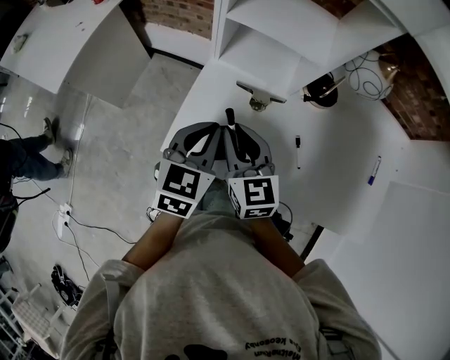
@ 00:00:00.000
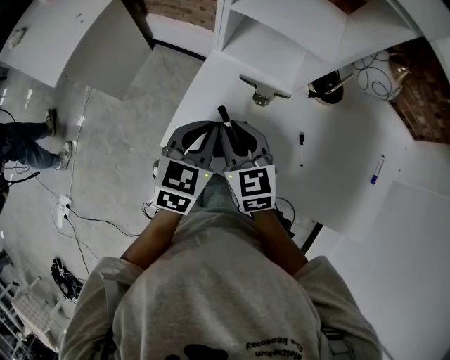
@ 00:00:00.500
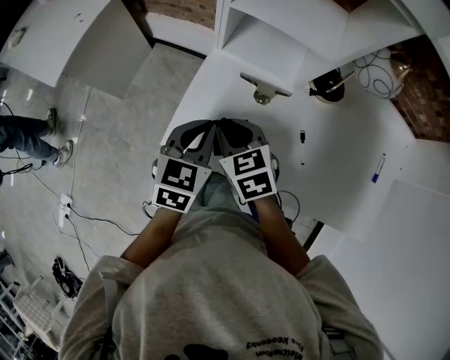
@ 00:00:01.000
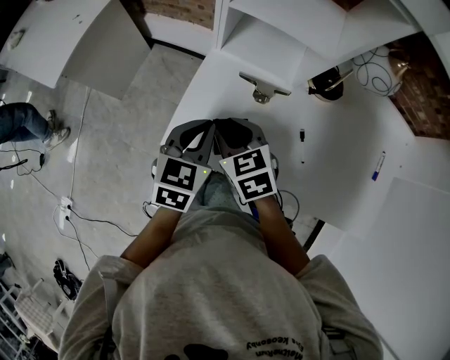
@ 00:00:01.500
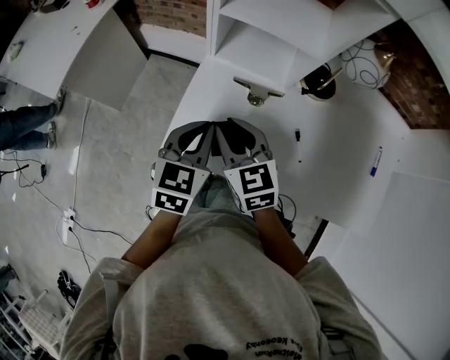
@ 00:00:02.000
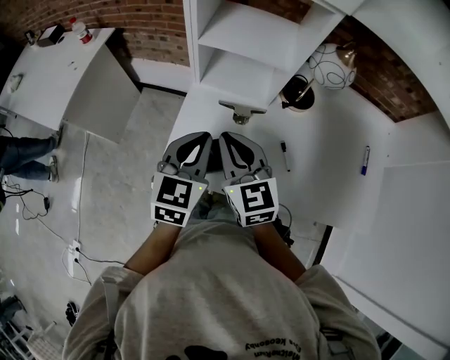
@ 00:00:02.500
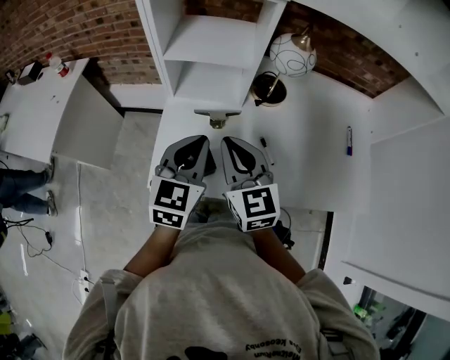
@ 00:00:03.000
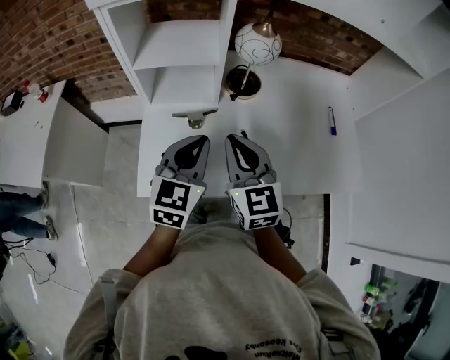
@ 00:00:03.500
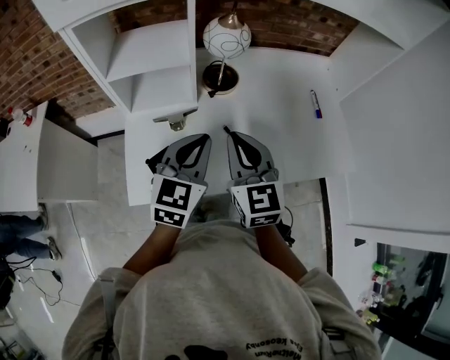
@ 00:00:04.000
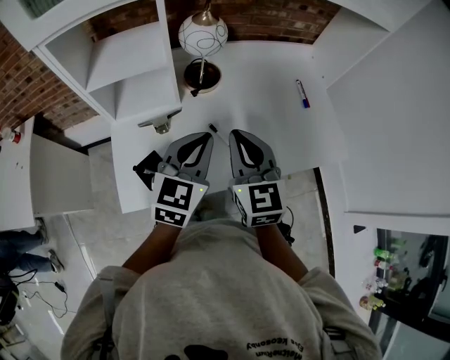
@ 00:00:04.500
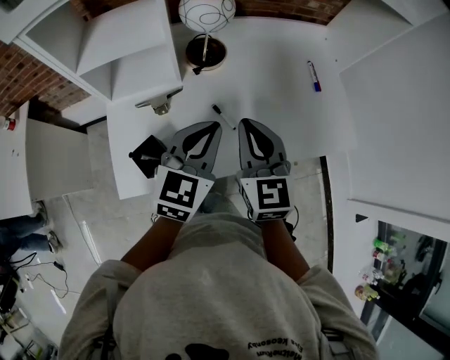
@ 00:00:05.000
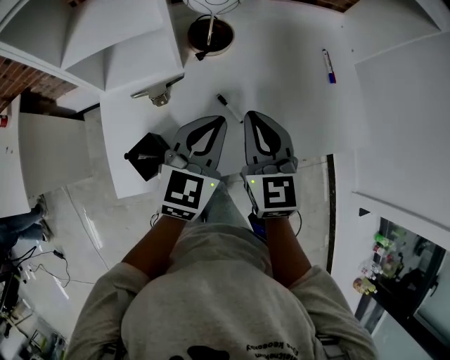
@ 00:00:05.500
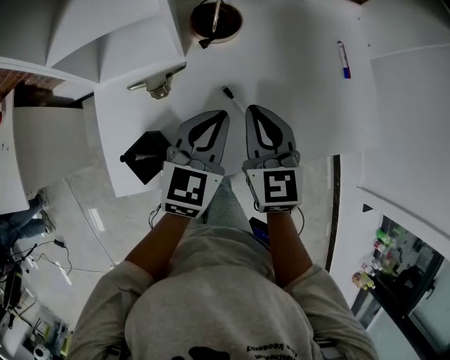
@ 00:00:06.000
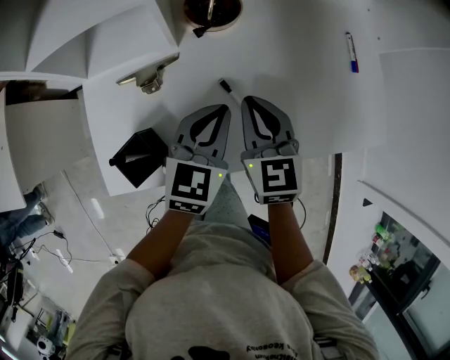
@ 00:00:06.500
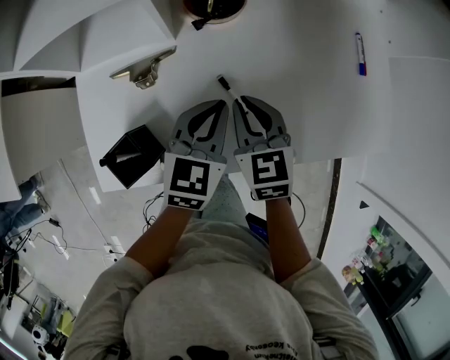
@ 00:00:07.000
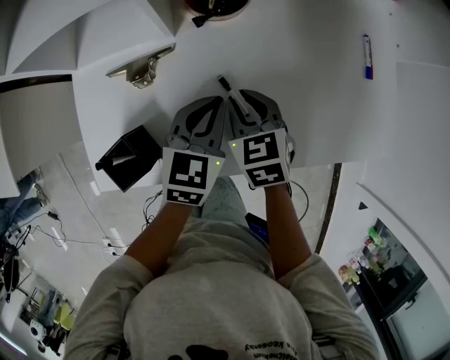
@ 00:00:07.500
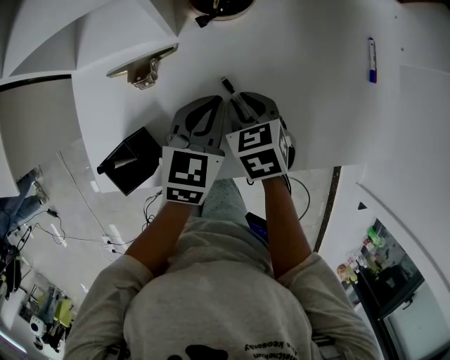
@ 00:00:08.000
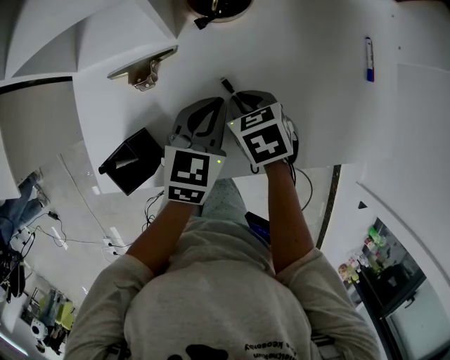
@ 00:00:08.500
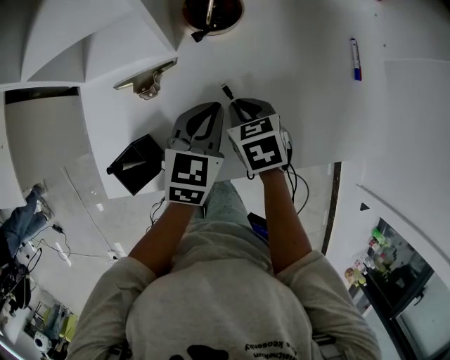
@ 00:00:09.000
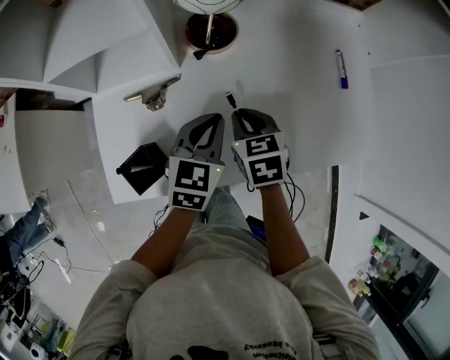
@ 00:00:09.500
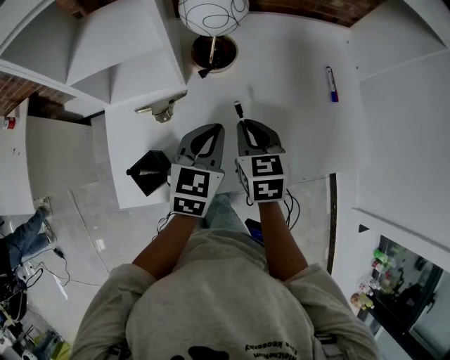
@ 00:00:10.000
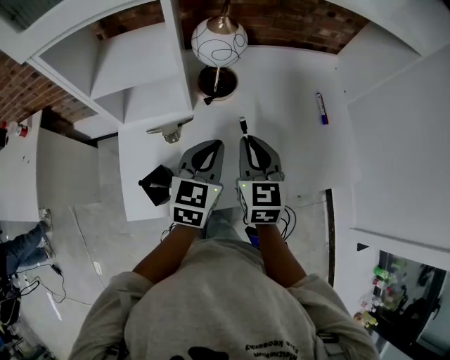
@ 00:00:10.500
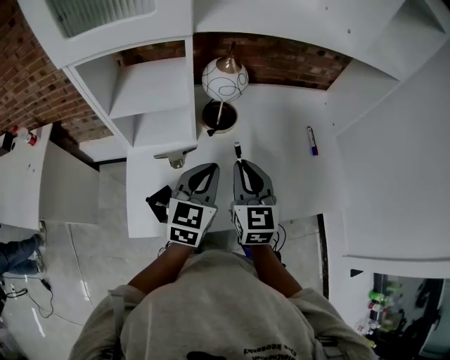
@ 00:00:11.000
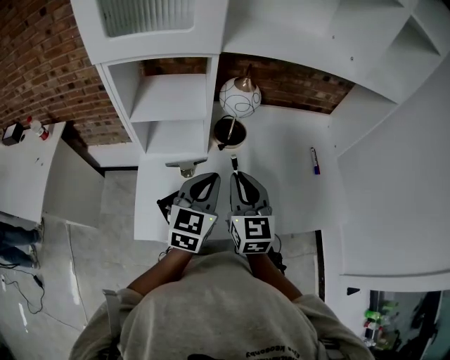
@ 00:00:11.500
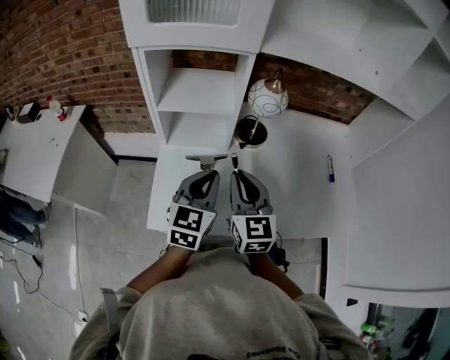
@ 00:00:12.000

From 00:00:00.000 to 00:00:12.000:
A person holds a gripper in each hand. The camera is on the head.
From 00:00:02.000 to 00:00:04.000: The left gripper ends up roughly 20 cm from where it was, and changes its angle by some 30 degrees, while the right gripper shifts by roughly 25 cm, turns by roughly 40 degrees, and closes its fingers.
From 00:00:04.000 to 00:00:06.000: Both grippers travel together downward and forward, some 15 cm.
From 00:00:06.000 to 00:00:08.000: The right gripper goes some 15 cm downward, and points its fingers roughly 40 degrees further downward, while the left gripper goes approximately 10 cm downward.
From 00:00:08.000 to 00:00:10.000: The grippers both shift upward by some 10 cm. The right gripper rotates some 30 degrees.
From 00:00:10.000 to 00:00:12.000: The right gripper heads upward, to the left and backward, covering about 20 cm, and changes its angle by approximately 30 degrees; the left gripper moves to the left, upward and backward, about 20 cm.

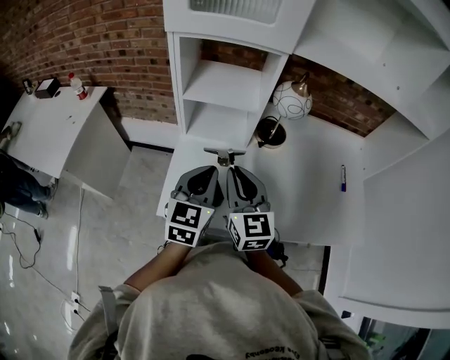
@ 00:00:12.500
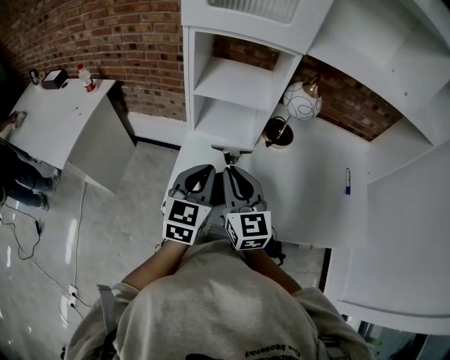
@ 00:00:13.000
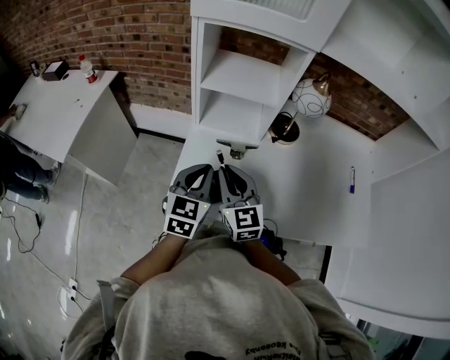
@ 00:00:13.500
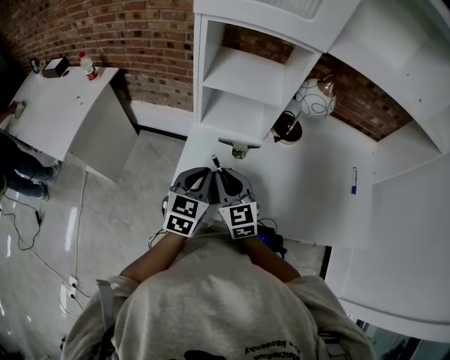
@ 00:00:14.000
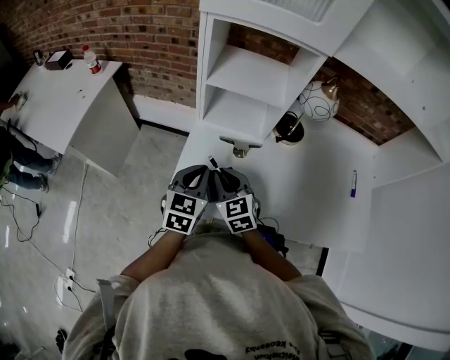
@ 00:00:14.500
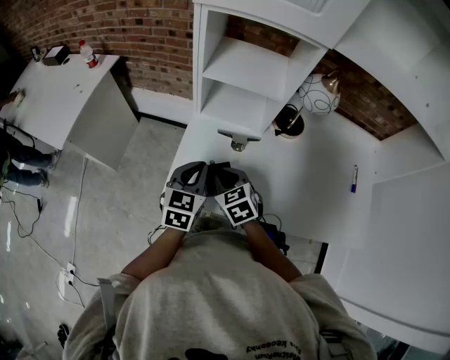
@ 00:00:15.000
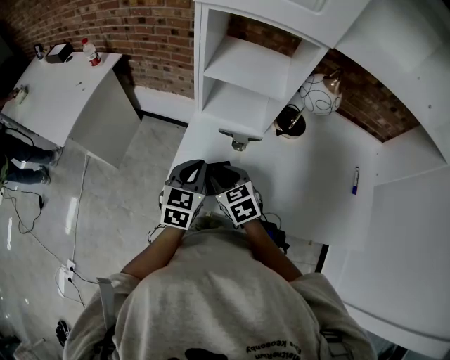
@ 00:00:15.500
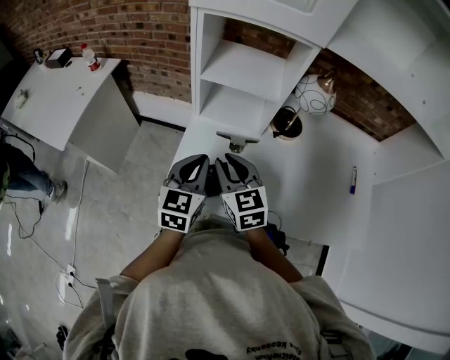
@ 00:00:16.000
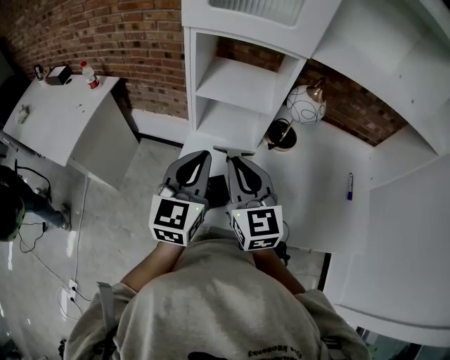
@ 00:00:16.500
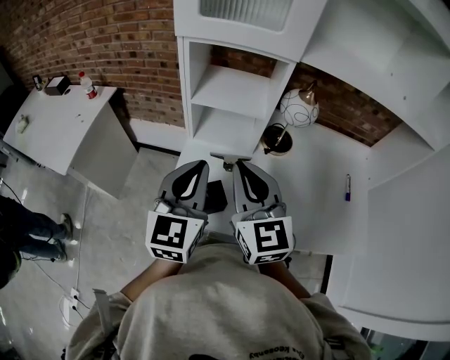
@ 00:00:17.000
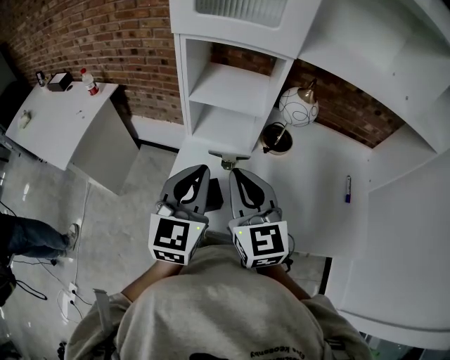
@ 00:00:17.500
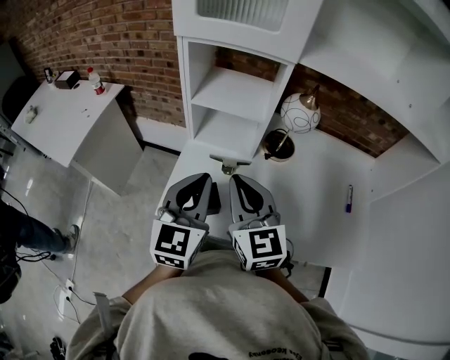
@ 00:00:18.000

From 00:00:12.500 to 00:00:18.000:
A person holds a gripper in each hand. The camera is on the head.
From 00:00:12.500 to 00:00:14.500: Both grippers travel together downward and to the left, some 15 cm. The right gripper turns by about 30 degrees.
From 00:00:14.500 to 00:00:16.000: The left gripper ends up approximately 5 cm from where it was. Meanwhile the right gripper heads upward, covering roughly 5 cm.
From 00:00:16.000 to 00:00:18.000: The right gripper goes roughly 15 cm upward and to the right, and closes up. Meanwhile the left gripper goes approximately 10 cm upward.

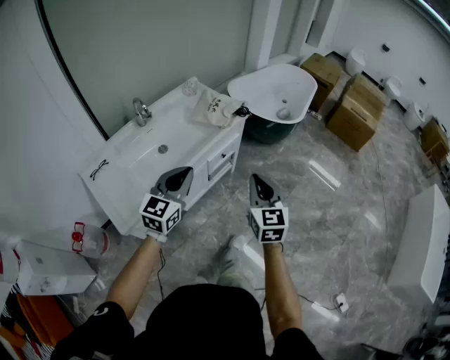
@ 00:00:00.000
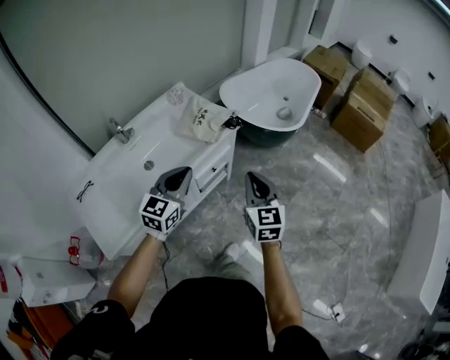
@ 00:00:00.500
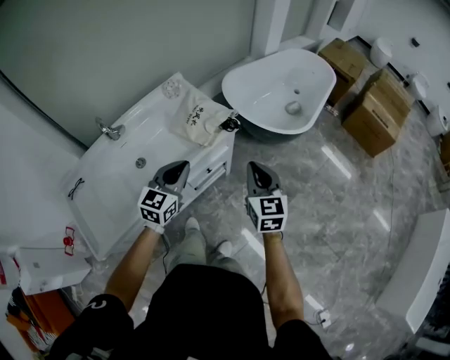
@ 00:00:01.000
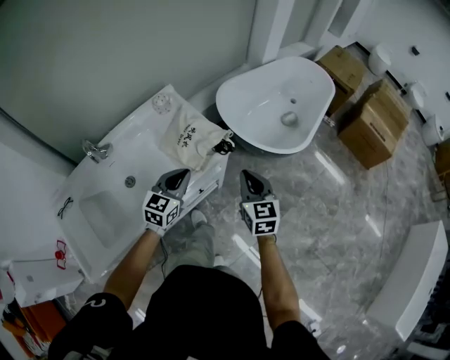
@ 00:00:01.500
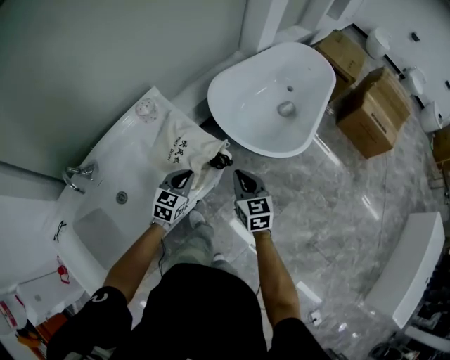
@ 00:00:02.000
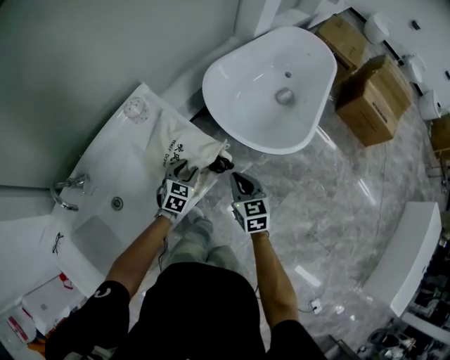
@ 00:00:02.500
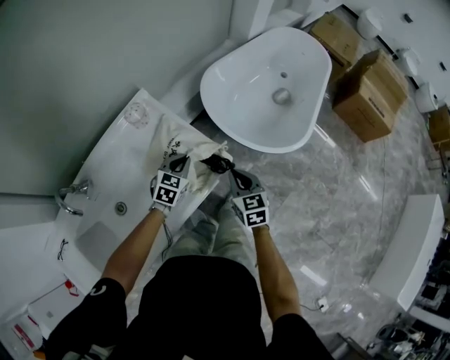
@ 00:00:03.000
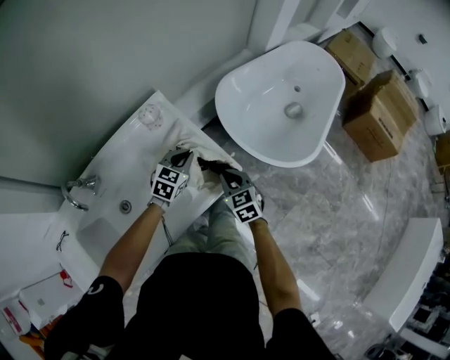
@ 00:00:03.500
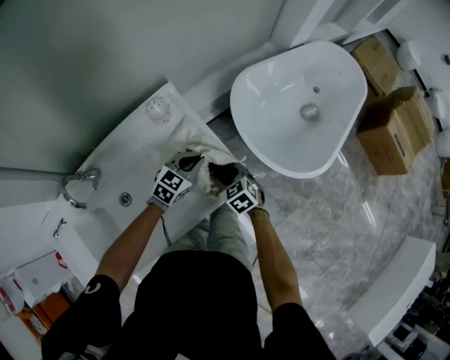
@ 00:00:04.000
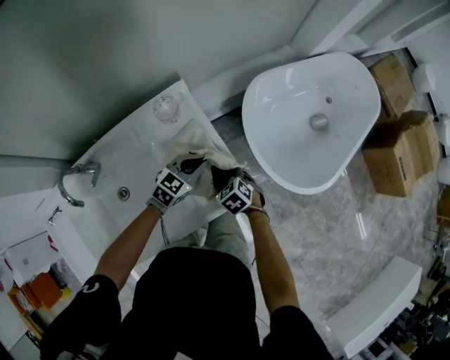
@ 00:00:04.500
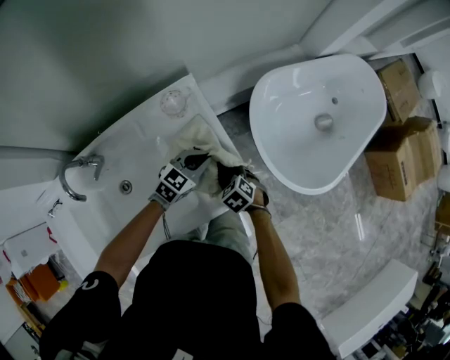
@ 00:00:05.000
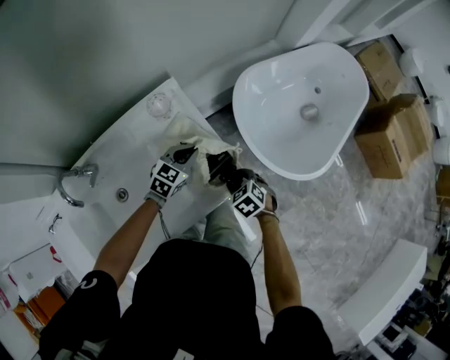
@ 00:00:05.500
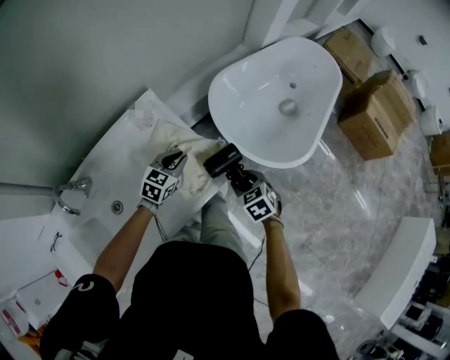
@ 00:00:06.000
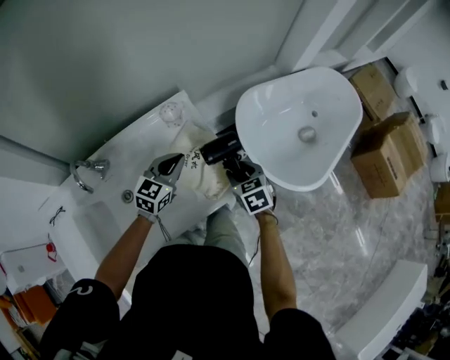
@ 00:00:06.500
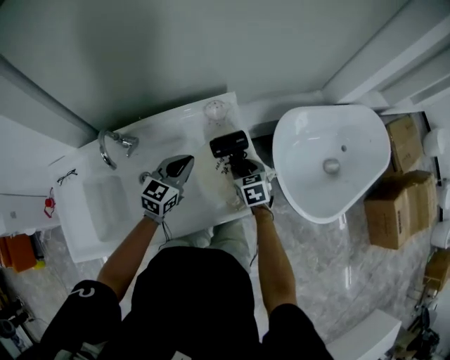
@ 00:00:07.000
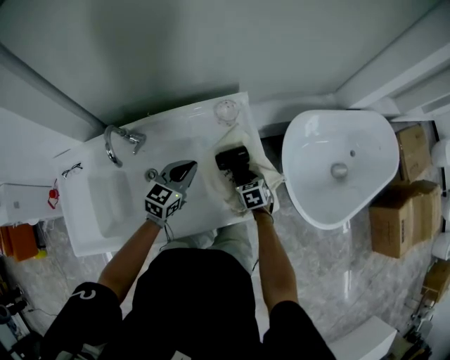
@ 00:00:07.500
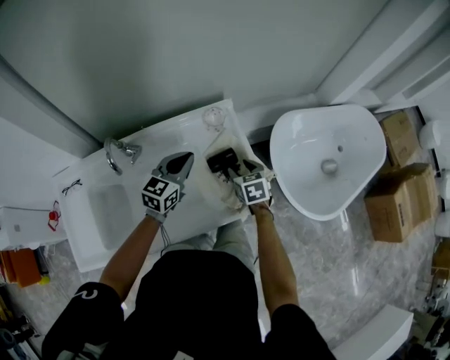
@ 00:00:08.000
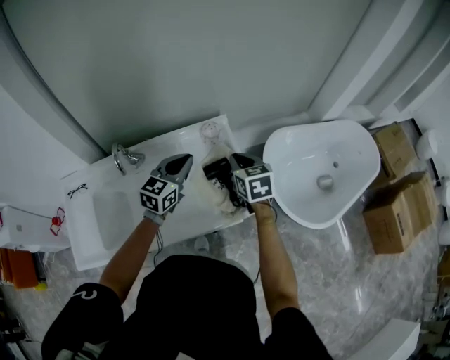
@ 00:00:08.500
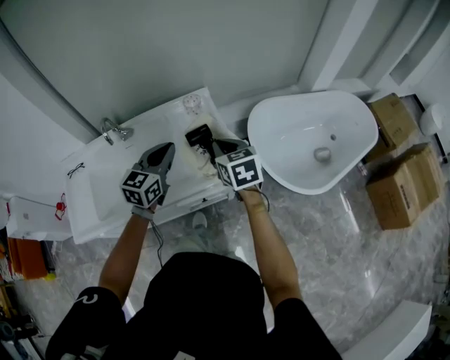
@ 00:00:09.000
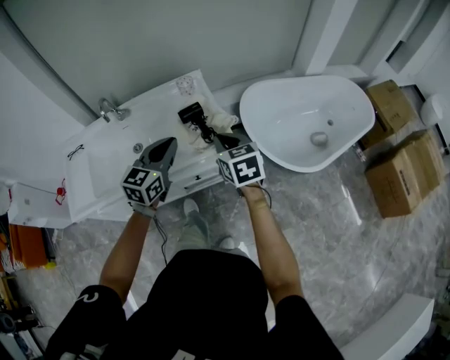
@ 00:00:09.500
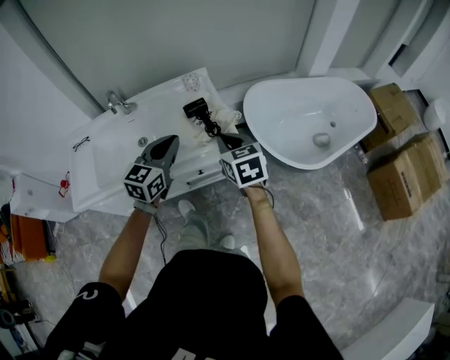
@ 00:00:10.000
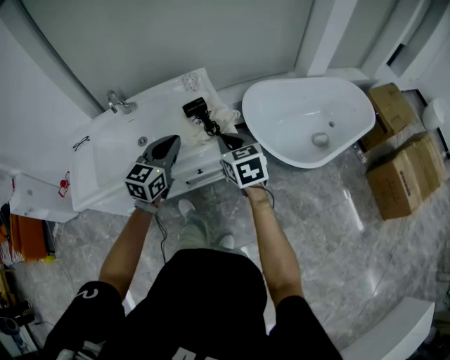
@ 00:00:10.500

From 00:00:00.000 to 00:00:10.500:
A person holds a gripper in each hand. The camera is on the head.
From 00:00:00.000 to 00:00:02.000: The two grippers travel together, forward, some 60 cm. The left gripper moves downward, roughly 25 cm, and turns by roughly 20 degrees.
From 00:00:02.000 to 00:00:04.000: The right gripper moves downward, to the left and forward, approximately 20 cm, swivels some 40 degrees, and opens up. The left gripper shifts roughly 15 cm forward, and opens and closes again.
From 00:00:04.000 to 00:00:06.500: The right gripper heads upward, covering roughly 10 cm. Meanwhile the left gripper travels upward and to the left by some 15 cm, and changes its angle by roughly 20 degrees.
From 00:00:06.500 to 00:00:08.500: The grippers both shift upward and to the left by some 15 cm. The right gripper closes its fingers.
From 00:00:08.500 to 00:00:10.500: The right gripper heads backward, covering about 30 cm, while the left gripper moves backward and to the right, approximately 30 cm.
